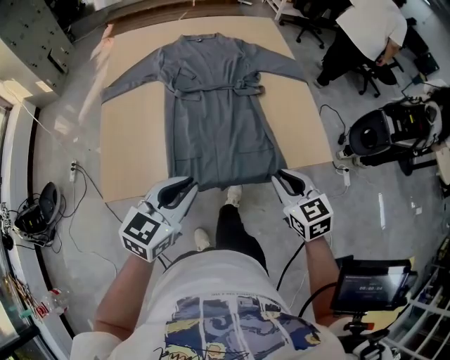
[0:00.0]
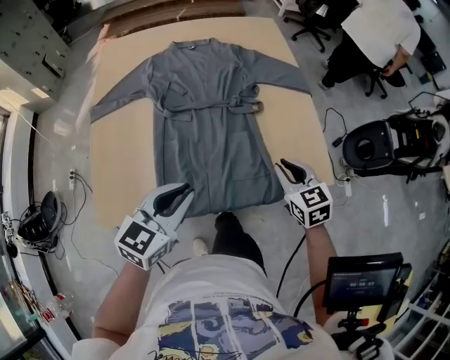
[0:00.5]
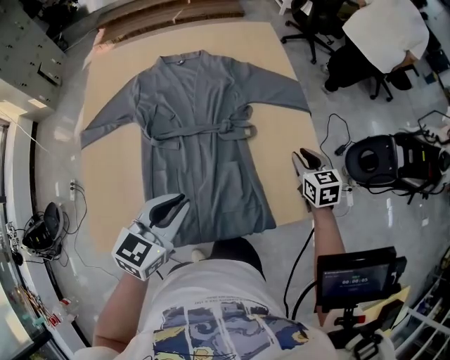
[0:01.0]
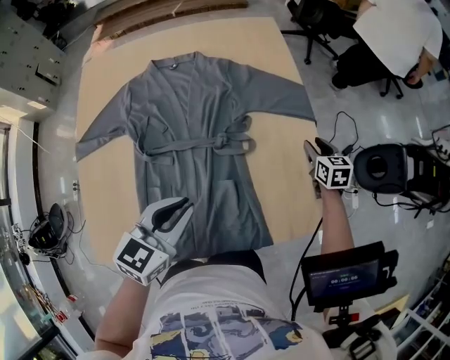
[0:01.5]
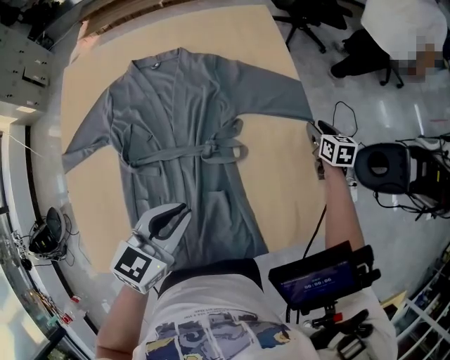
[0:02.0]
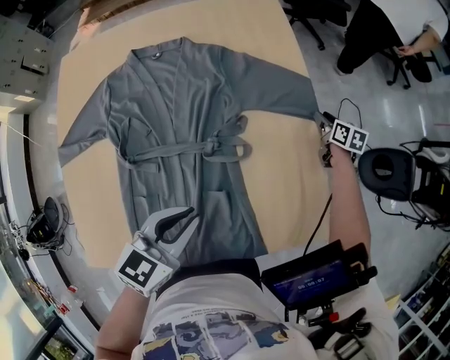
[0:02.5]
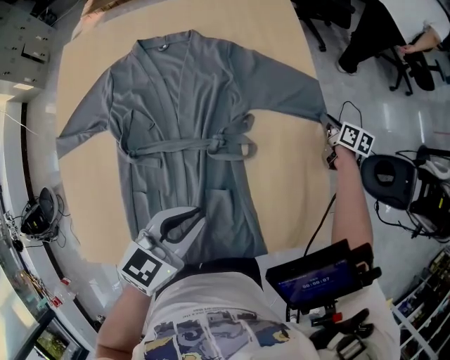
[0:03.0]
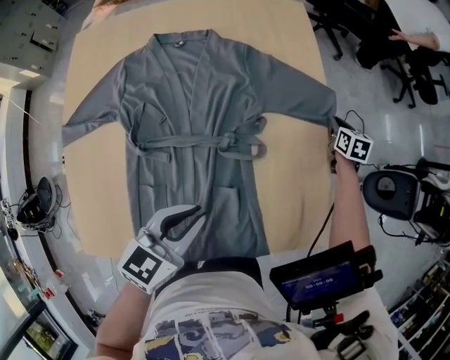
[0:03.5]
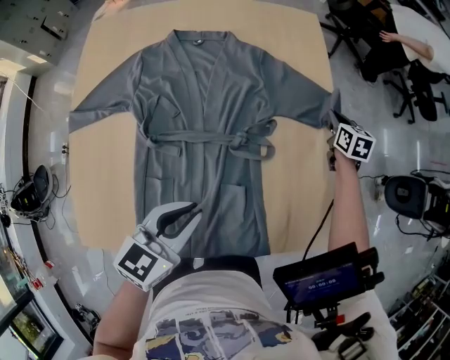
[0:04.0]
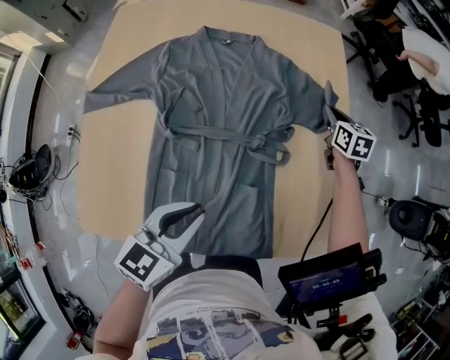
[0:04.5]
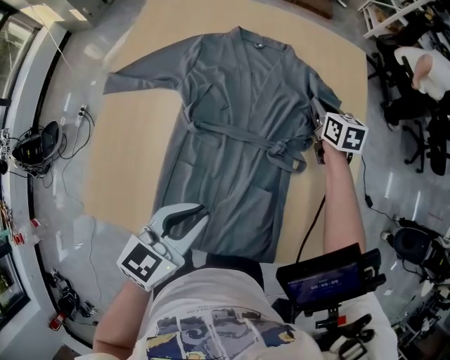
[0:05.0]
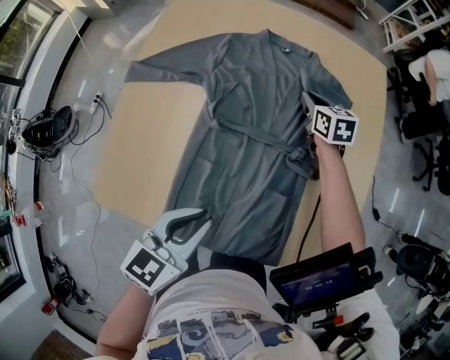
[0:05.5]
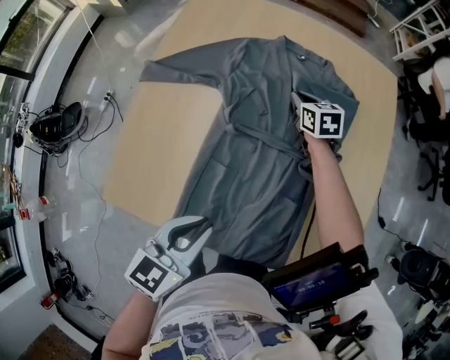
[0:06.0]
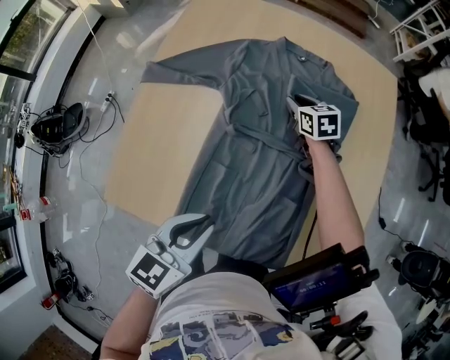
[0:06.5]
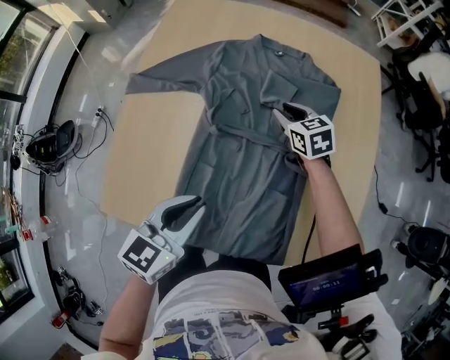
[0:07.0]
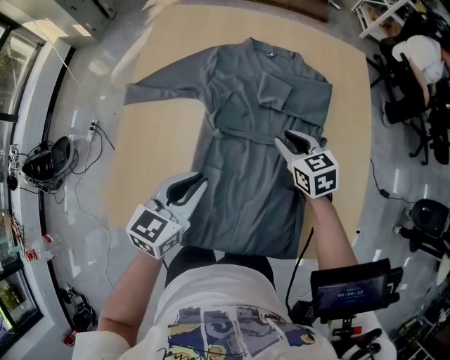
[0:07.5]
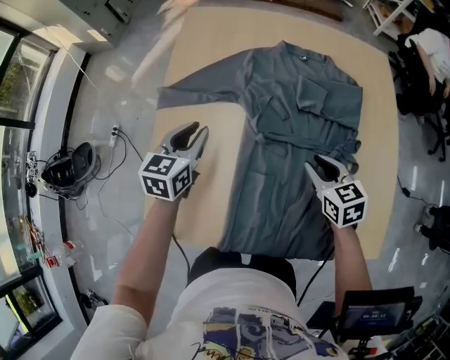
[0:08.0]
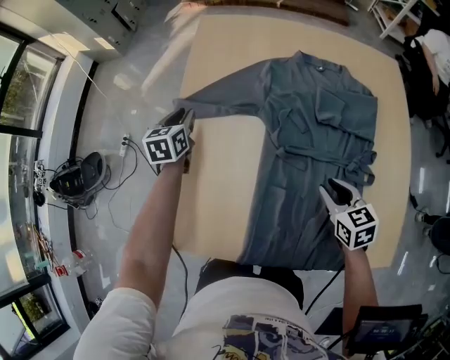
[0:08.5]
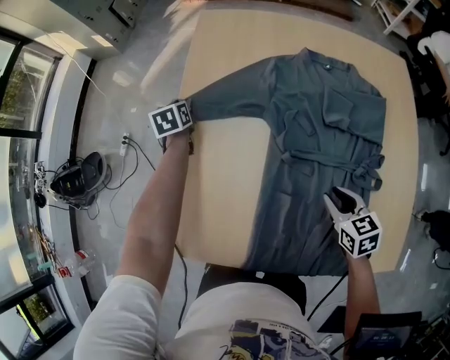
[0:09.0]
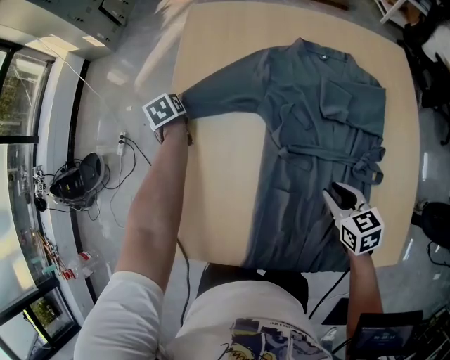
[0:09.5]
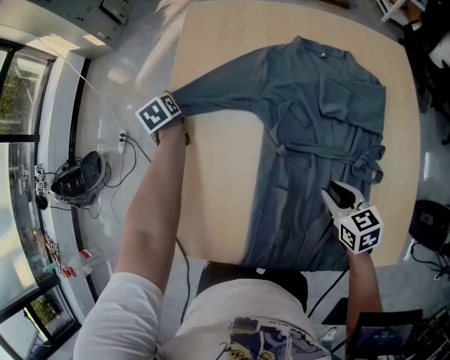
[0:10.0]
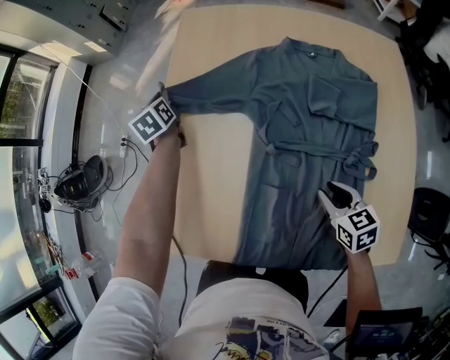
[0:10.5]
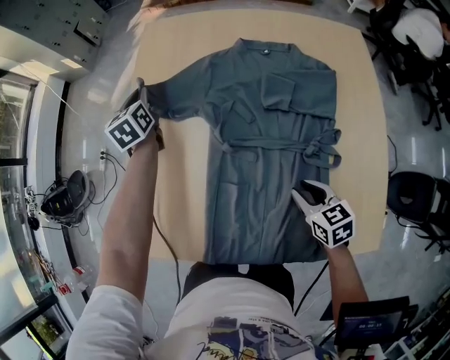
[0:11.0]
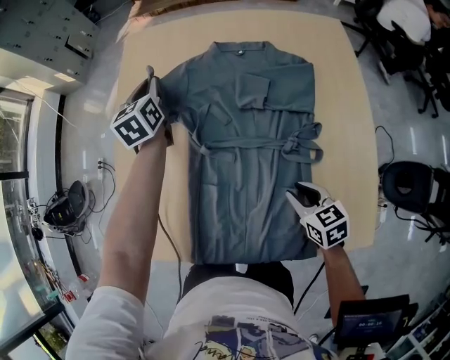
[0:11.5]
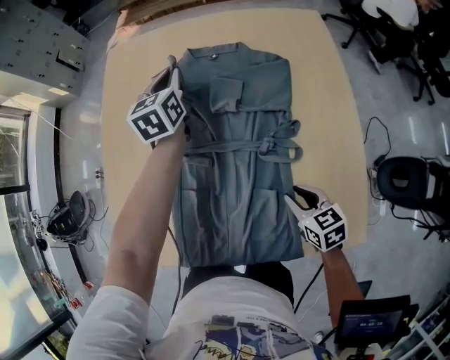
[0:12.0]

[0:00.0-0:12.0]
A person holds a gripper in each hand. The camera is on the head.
0:00.0 to 0:02.0: The right gripper goes approximately 50 cm forward, swivels about 30 degrees, and opens its fingers; the left gripper is displaced forward by roughly 30 cm.
0:02.0 to 0:04.0: The right gripper moves to the left and forward, about 10 cm, and closes.
0:04.0 to 0:06.0: The left gripper ends up roughly 15 cm from where it was, and turns by some 20 degrees. The right gripper moves roughly 40 cm, and changes its angle by approximately 30 degrees.
0:06.0 to 0:08.0: The left gripper goes some 30 cm forward and to the left. Meanwhile the right gripper shifts some 20 cm backward.
0:08.0 to 0:10.0: The right gripper shifts by some 5 cm. The left gripper moves forward, downward and to the left, approximately 30 cm, changes its angle by roughly 40 degrees, and opens, then closes again.
0:10.0 to 0:12.0: The right gripper is displaced to the right and backward by approximately 20 cm. The left gripper travels to the right and upward by some 40 cm, and swivels about 40 degrees.

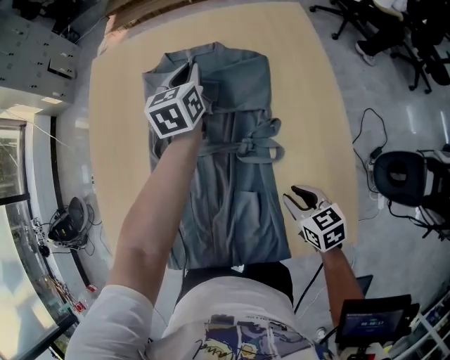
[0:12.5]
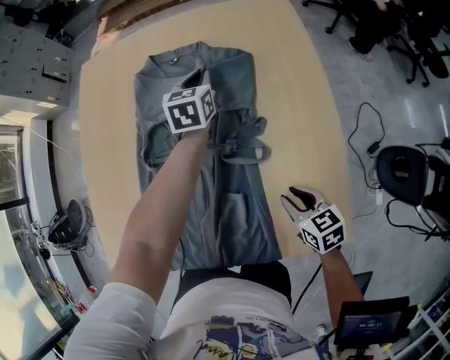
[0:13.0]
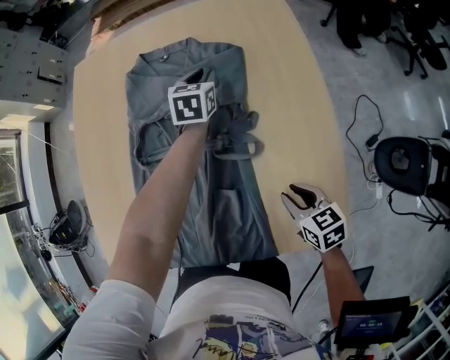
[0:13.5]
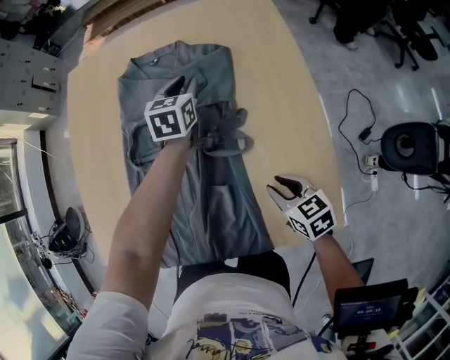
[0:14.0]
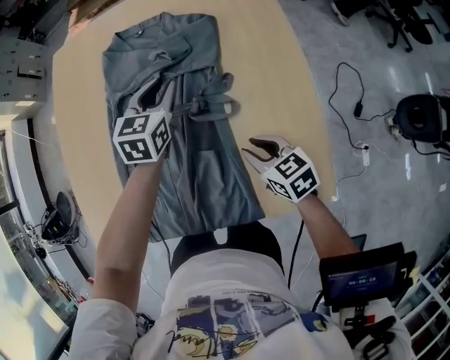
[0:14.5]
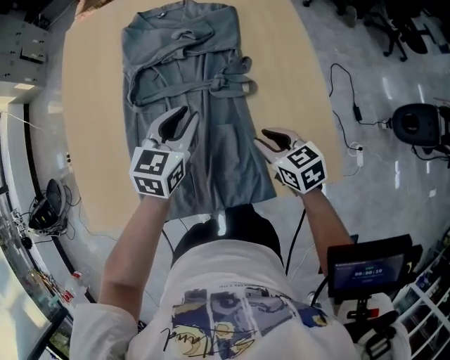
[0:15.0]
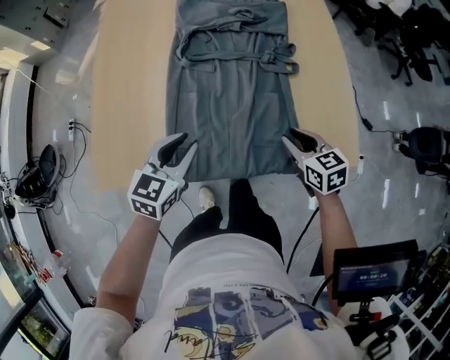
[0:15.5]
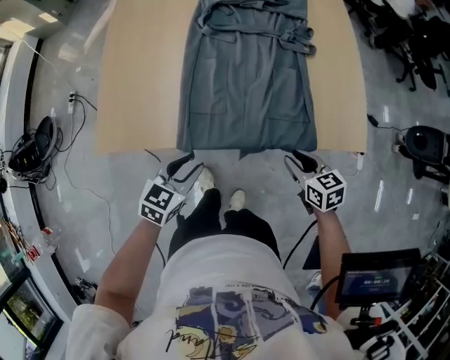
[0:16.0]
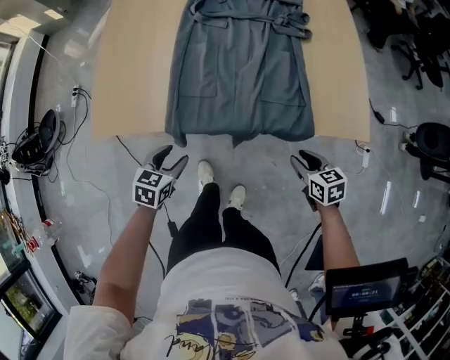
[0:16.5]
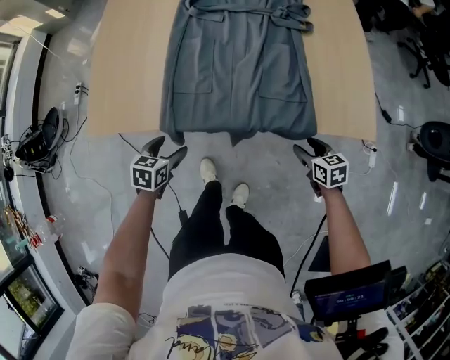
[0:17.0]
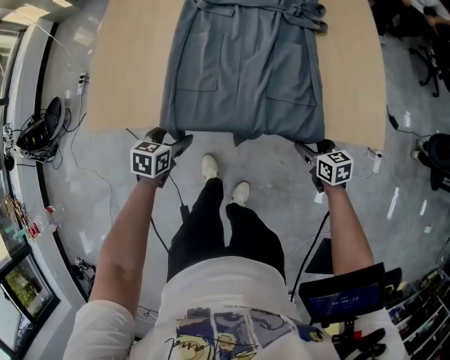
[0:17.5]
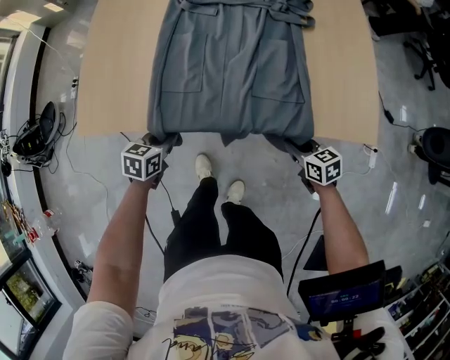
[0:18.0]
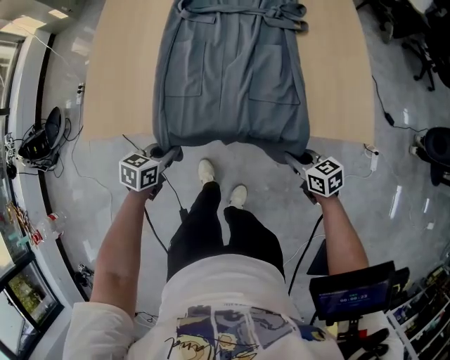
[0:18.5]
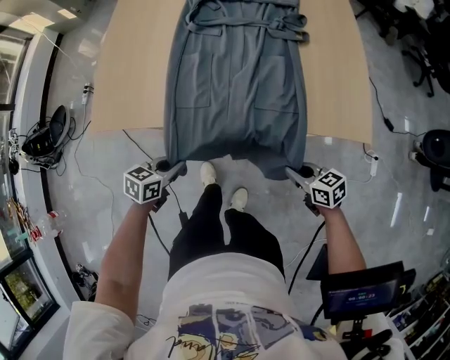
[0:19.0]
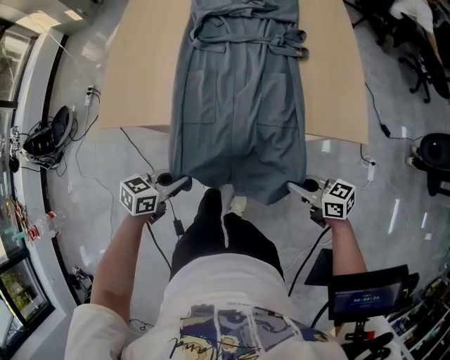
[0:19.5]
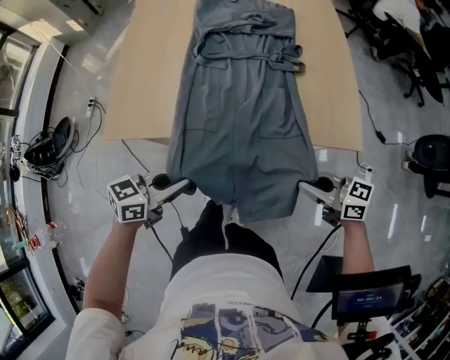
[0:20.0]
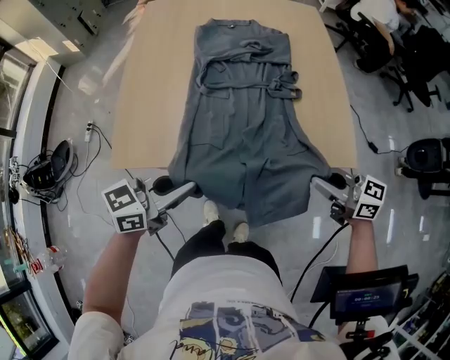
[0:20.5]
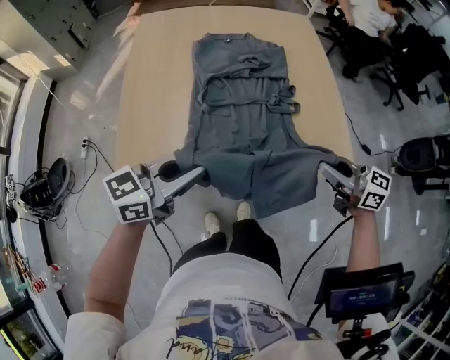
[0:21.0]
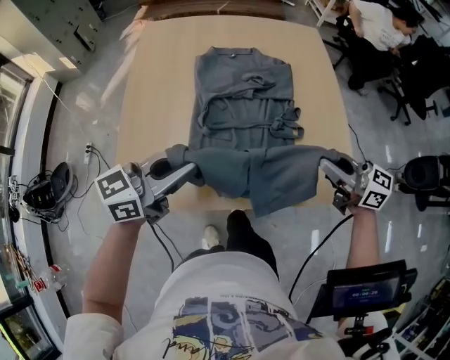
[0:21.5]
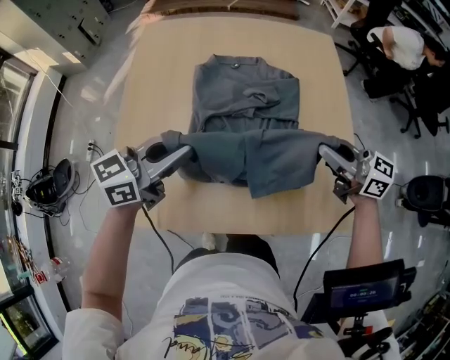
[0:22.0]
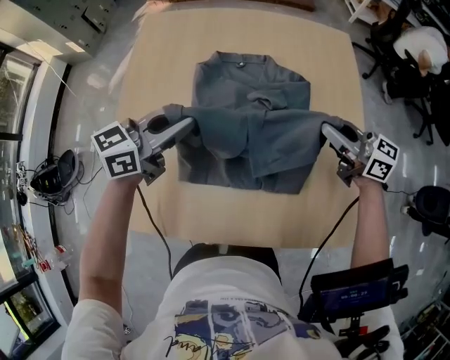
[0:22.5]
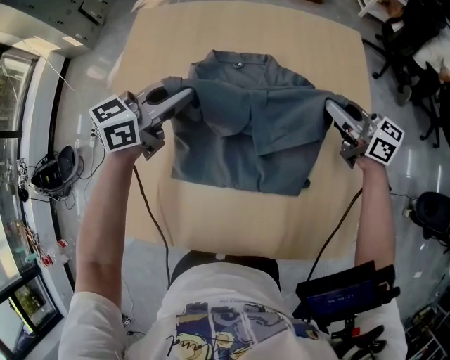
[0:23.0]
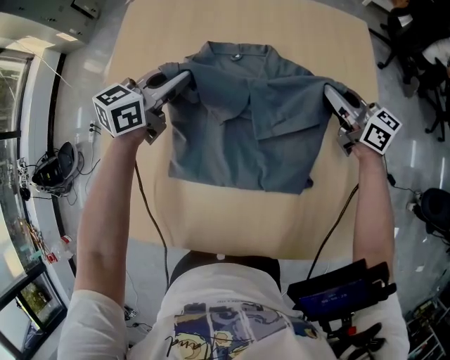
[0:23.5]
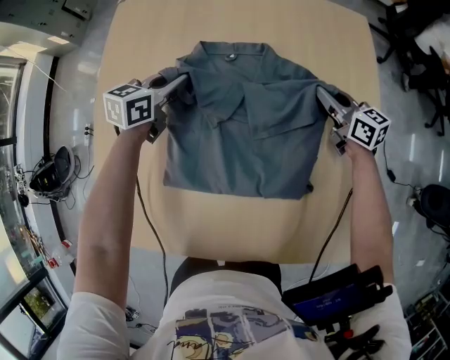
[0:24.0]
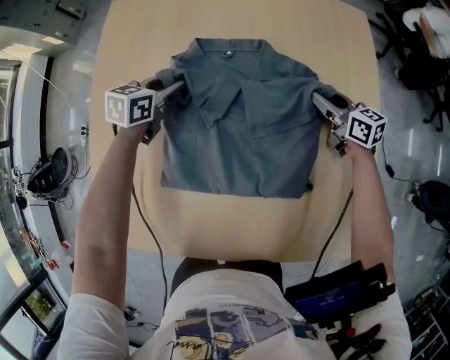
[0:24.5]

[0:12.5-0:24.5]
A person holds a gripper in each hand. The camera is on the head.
0:12.5 to 0:14.5: The left gripper goes roughly 15 cm backward.
0:14.5 to 0:16.5: The left gripper shifts some 60 cm backward and to the left, turns by approximately 20 degrees, and opens its fingers; the right gripper travels backward by roughly 30 cm.
0:16.5 to 0:18.5: The left gripper closes, while the right gripper is displaced downward by some 5 cm, and closes up.
0:18.5 to 0:20.5: Both grippers move upward, about 25 cm. The right gripper turns by approximately 30 degrees; the left gripper points its fingers some 30 degrees further upward.
0:20.5 to 0:22.5: The left gripper shifts by about 40 cm, while the right gripper moves about 40 cm.
0:22.5 to 0:24.5: Both grippers move downward and forward, approximately 25 cm. The right gripper turns by some 30 degrees, and opens its fingers, while the left gripper turns by some 30 degrees.

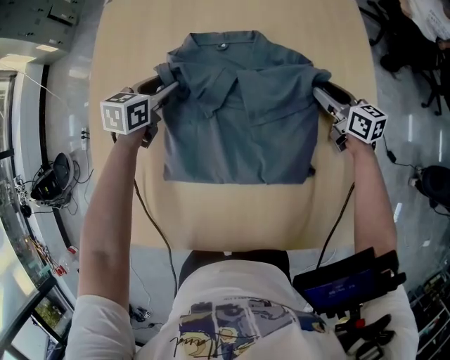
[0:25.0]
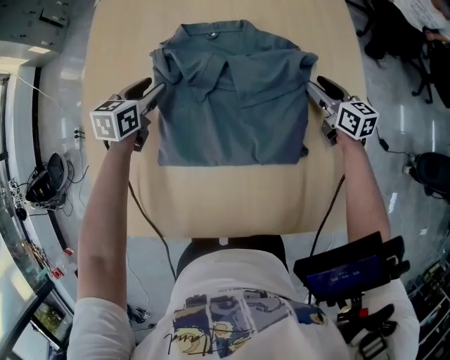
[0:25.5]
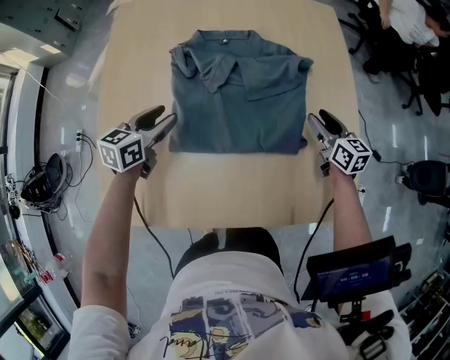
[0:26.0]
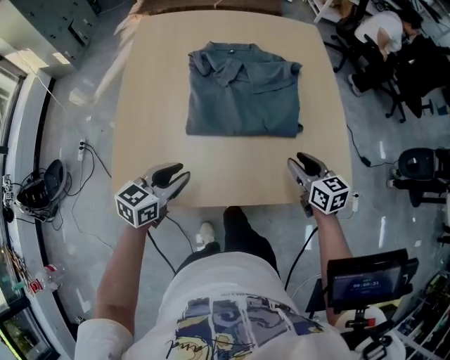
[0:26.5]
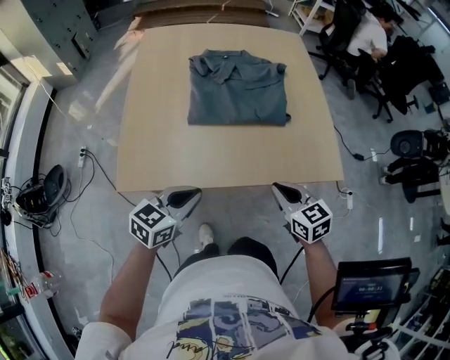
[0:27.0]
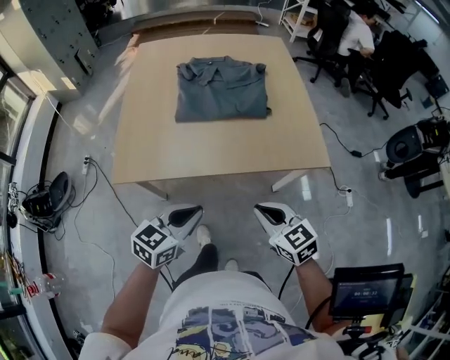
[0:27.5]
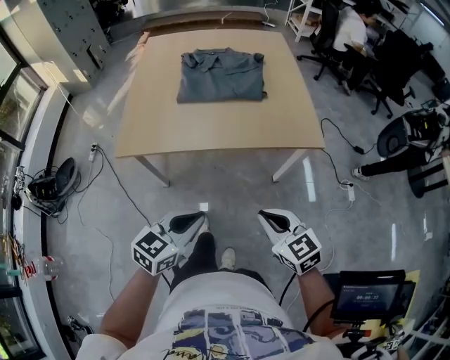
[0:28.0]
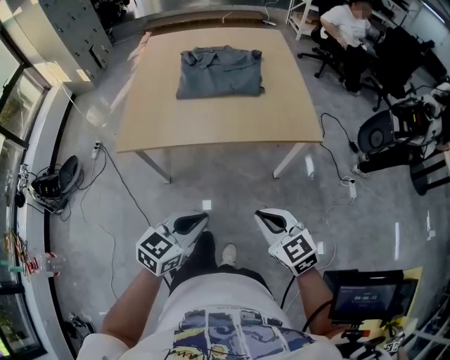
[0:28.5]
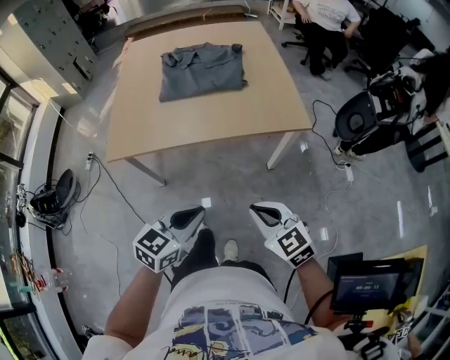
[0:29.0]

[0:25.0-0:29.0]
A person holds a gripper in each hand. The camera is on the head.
0:25.0 to 0:27.0: The pair of grippers is taken backward, approximately 50 cm. The left gripper changes its angle by roughly 20 degrees, and closes up, while the right gripper changes its angle by about 20 degrees, and closes its fingers.
0:27.0 to 0:29.0: The left gripper shifts approximately 30 cm backward and to the right. The right gripper travels backward by roughly 25 cm.
